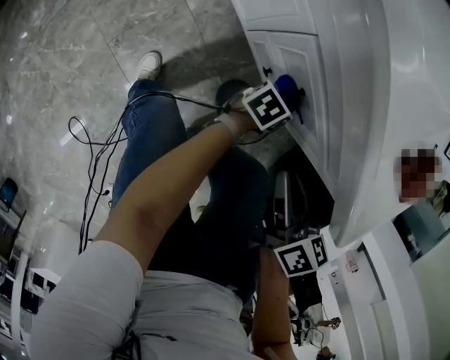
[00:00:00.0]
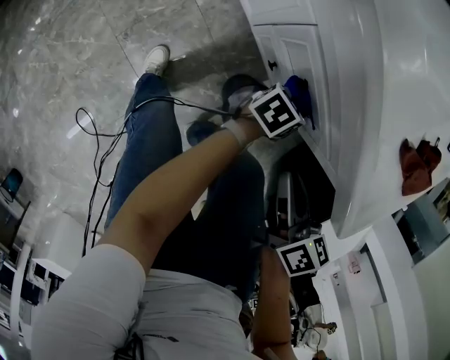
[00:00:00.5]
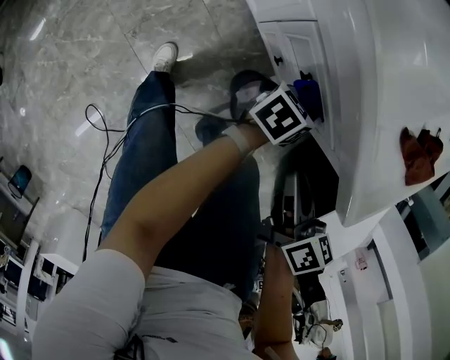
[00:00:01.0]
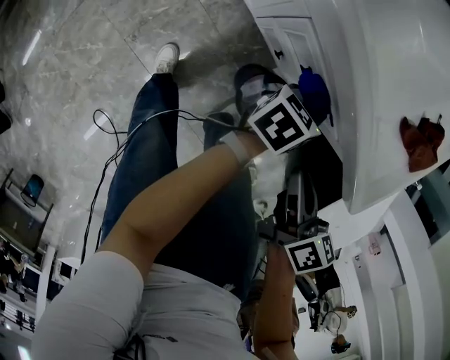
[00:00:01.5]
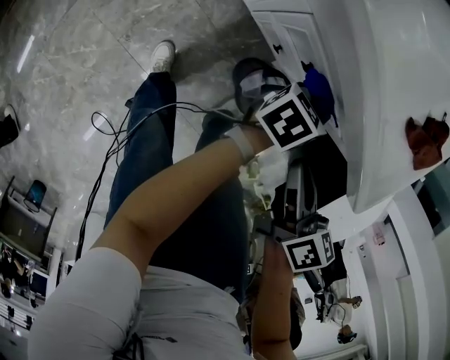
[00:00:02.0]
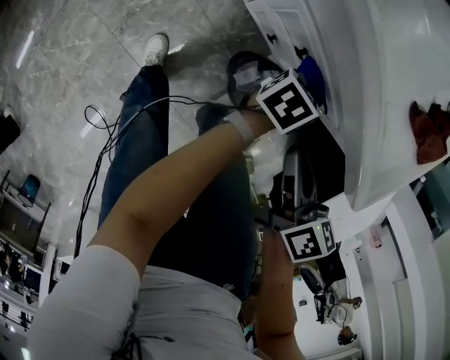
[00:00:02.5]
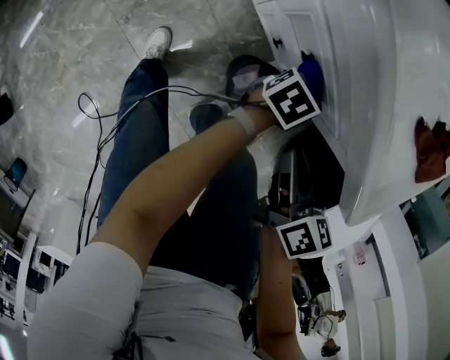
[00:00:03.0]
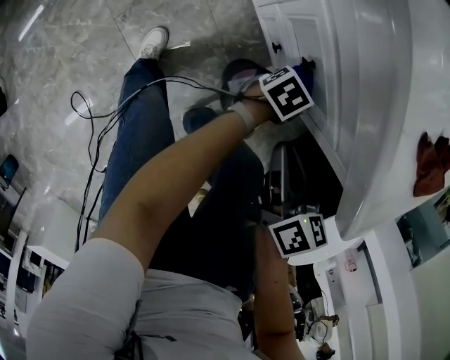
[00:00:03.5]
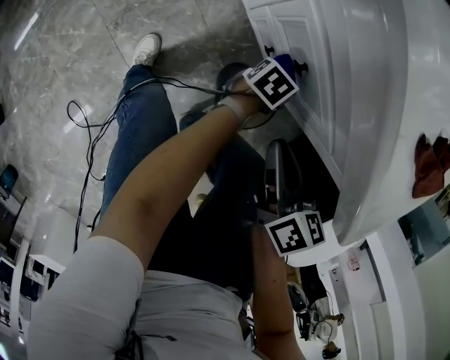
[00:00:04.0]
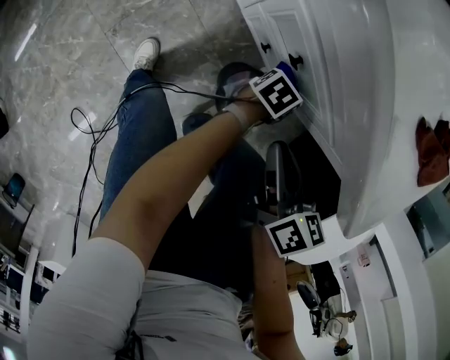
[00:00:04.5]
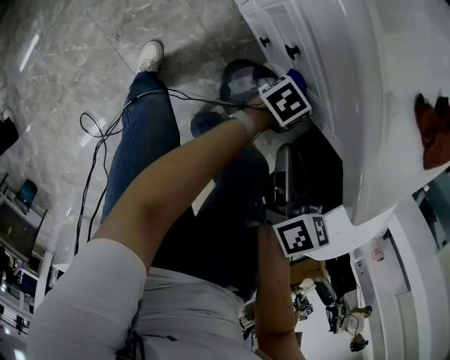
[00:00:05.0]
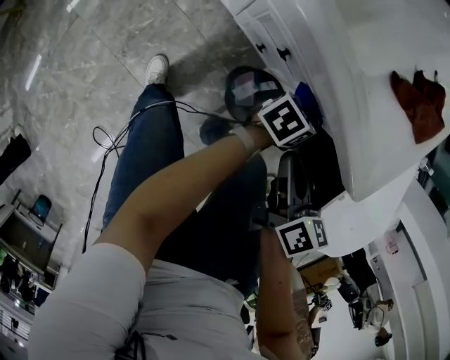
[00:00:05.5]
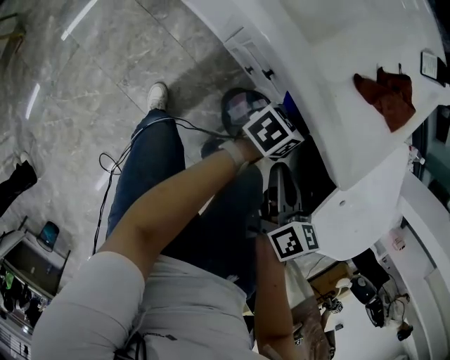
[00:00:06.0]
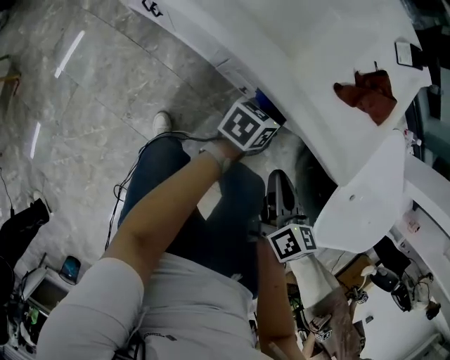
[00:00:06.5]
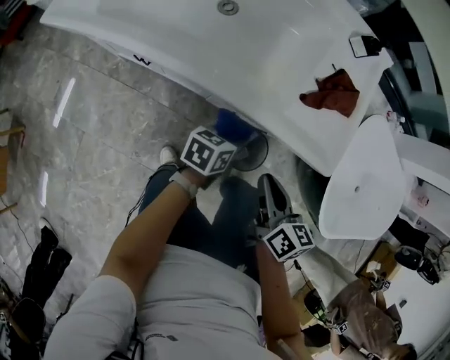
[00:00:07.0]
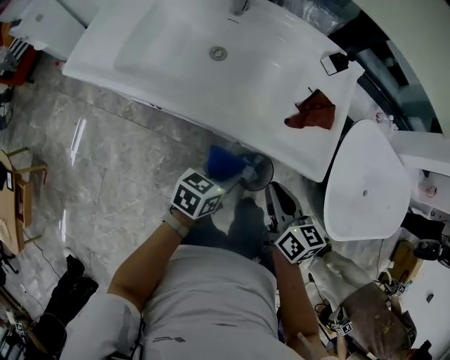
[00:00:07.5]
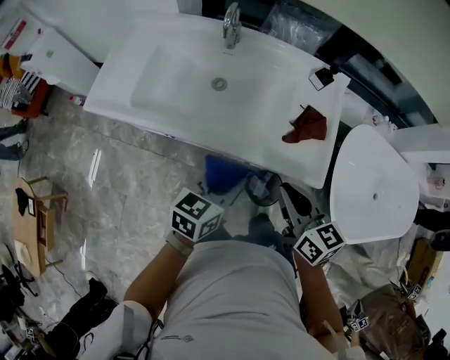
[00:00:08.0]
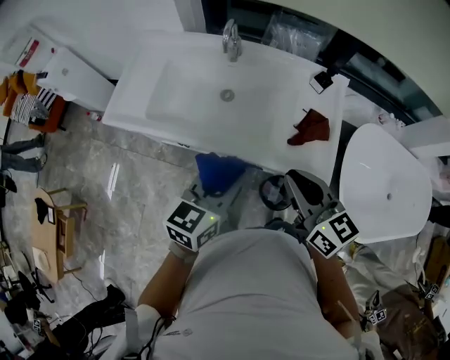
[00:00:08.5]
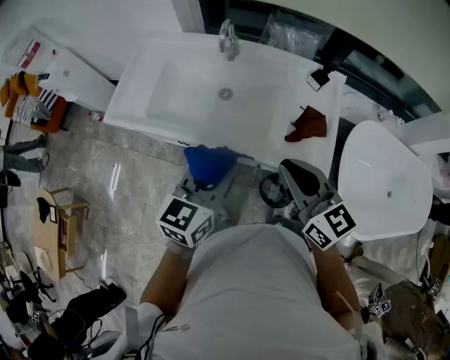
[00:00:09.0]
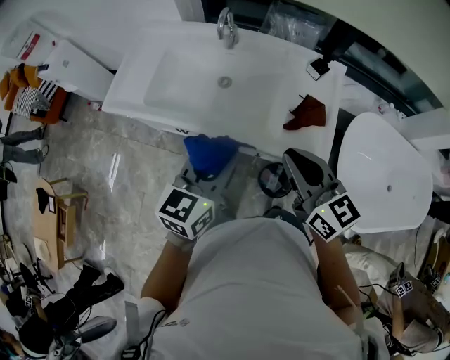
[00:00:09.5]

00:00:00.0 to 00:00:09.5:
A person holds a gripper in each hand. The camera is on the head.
00:00:00.0 to 00:00:02.0: The left gripper heads upward, covering some 15 cm. Meanwhile the right gripper moves upward, approximately 5 cm.
00:00:02.0 to 00:00:04.0: The right gripper travels downward by about 10 cm. Meanwhile the left gripper moves downward, roughly 20 cm, and rotates approximately 20 degrees.
00:00:04.0 to 00:00:05.5: The left gripper goes some 20 cm upward and to the right, and rotates some 20 degrees; the right gripper shifts approximately 10 cm upward and to the right.
00:00:05.5 to 00:00:07.5: Both grippers travel together upward and to the left, some 30 cm.
00:00:07.5 to 00:00:09.5: Both grippers move upward, about 20 cm. The right gripper swivels approximately 30 degrees; the left gripper changes its angle by about 30 degrees.

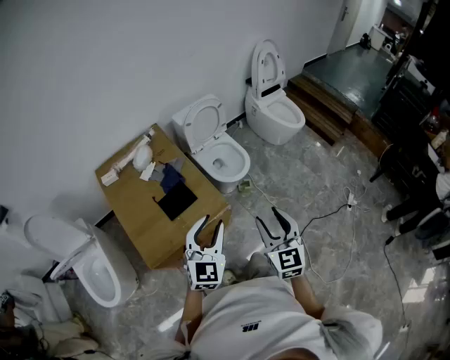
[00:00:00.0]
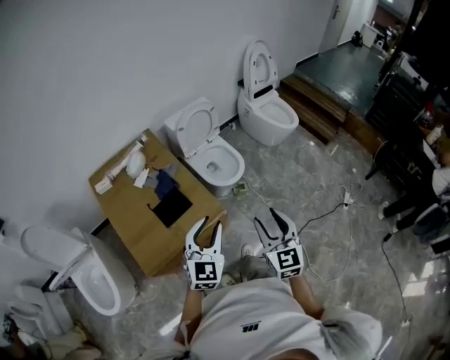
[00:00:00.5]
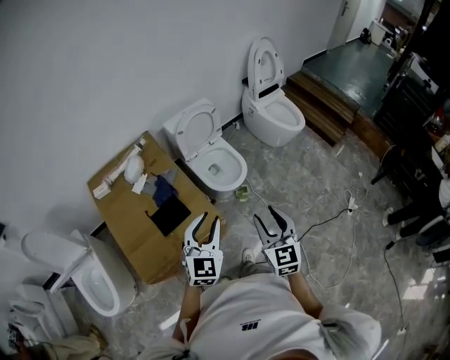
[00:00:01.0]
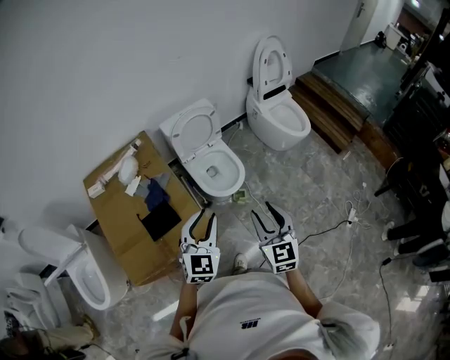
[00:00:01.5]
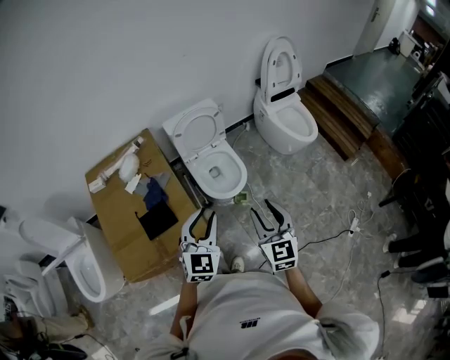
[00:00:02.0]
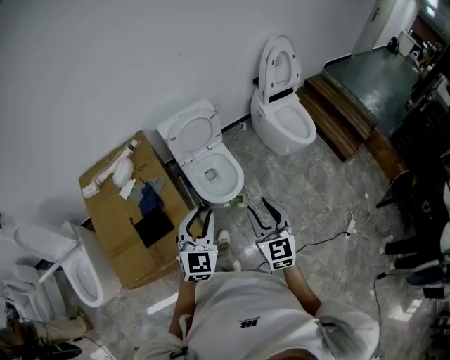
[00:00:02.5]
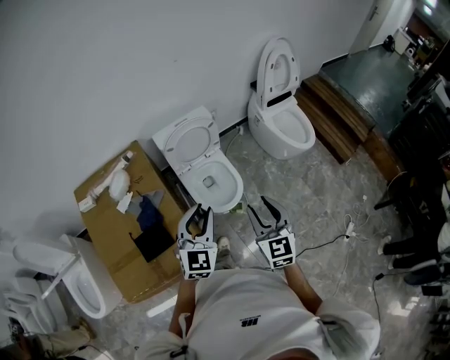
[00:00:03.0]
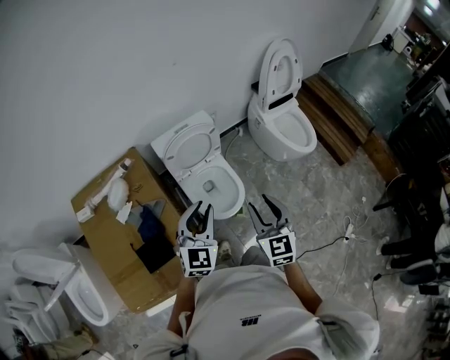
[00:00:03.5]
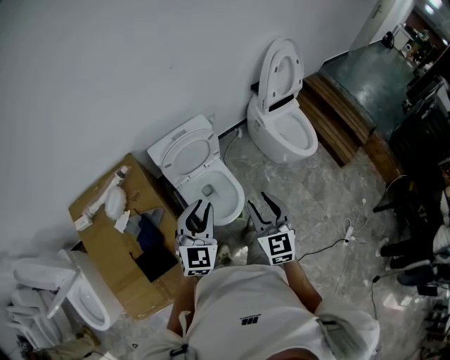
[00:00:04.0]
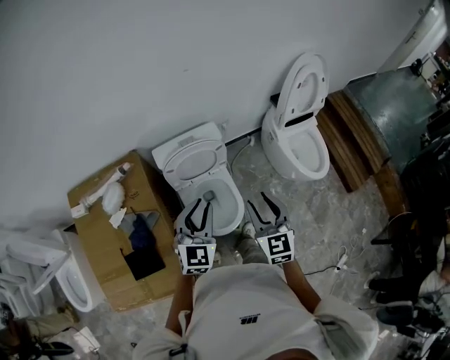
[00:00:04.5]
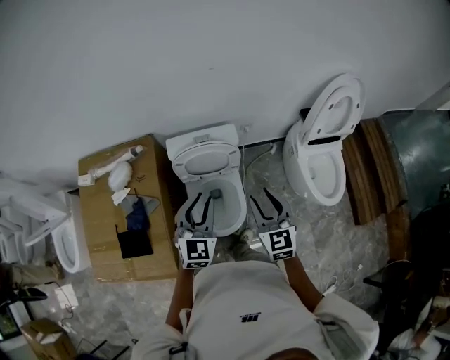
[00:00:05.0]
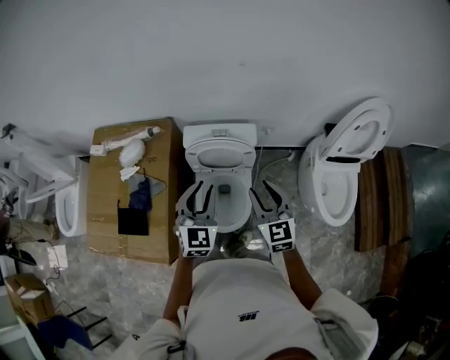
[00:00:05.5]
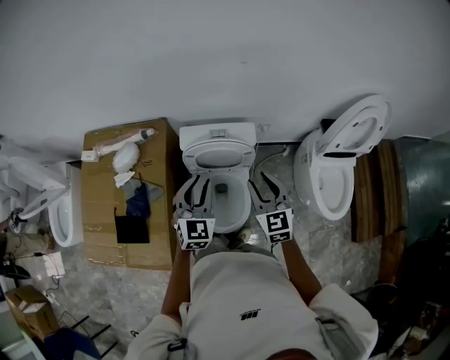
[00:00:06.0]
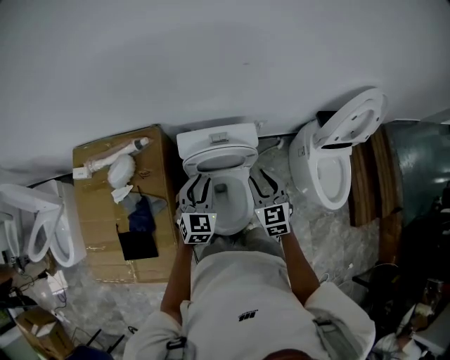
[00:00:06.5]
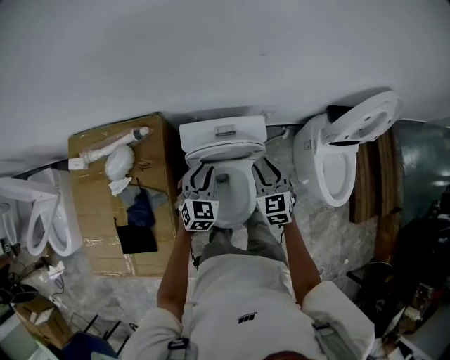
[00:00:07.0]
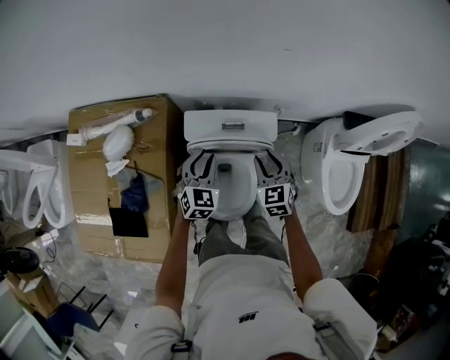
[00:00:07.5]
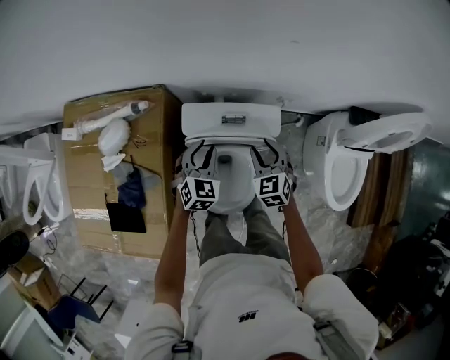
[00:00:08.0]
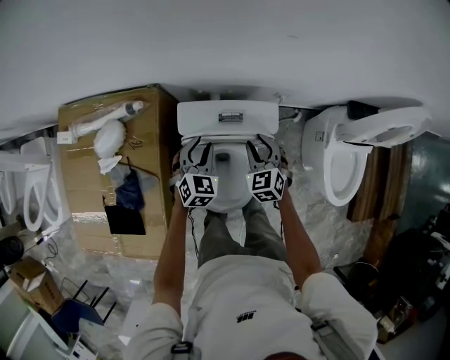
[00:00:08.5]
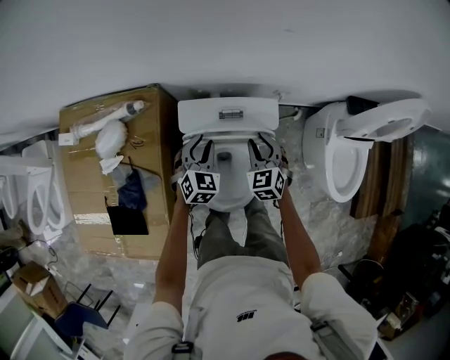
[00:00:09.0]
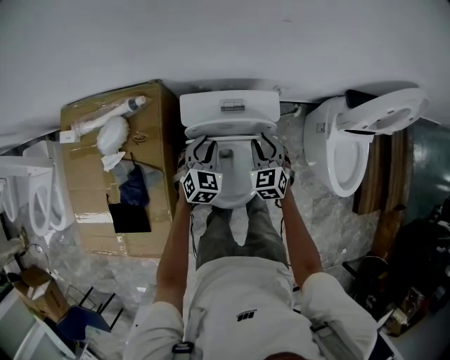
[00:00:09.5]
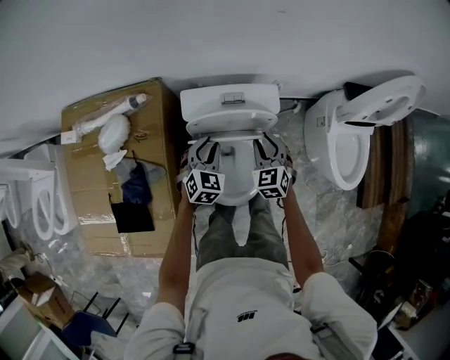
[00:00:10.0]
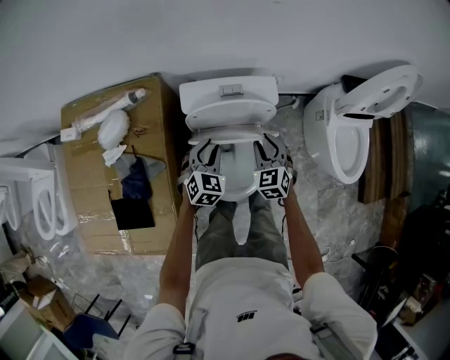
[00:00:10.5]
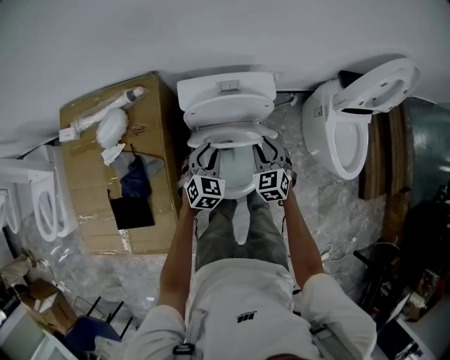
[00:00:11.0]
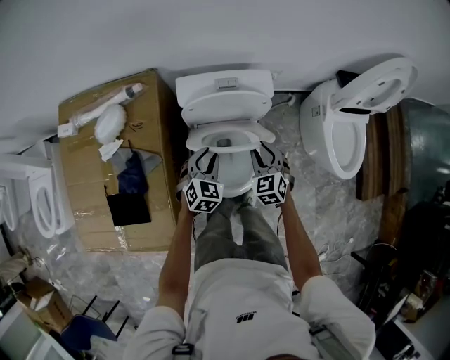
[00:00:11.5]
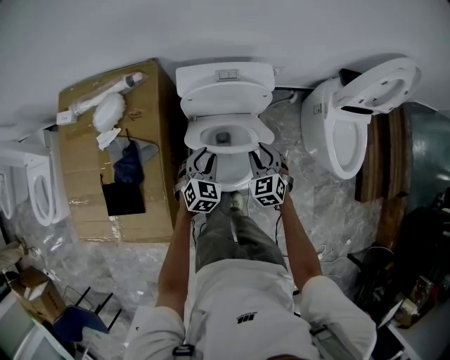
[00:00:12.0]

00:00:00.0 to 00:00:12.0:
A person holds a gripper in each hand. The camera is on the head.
00:00:00.0 to 00:00:02.0: Both grippers move forward and to the right, approximately 25 cm.
00:00:02.0 to 00:00:04.0: The grippers both shift forward by approximately 30 cm.
00:00:04.0 to 00:00:06.0: The left gripper shifts by approximately 20 cm, and swivels approximately 30 degrees. The right gripper changes place by about 25 cm, and turns by approximately 30 degrees.
00:00:06.0 to 00:00:08.0: The two grippers go some 25 cm downward and forward. The right gripper changes its angle by some 20 degrees.
00:00:08.0 to 00:00:10.0: Both grippers move backward, some 5 cm.
00:00:10.0 to 00:00:12.0: The grippers both shift backward by roughly 15 cm.

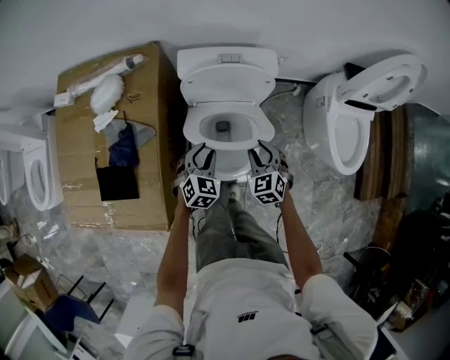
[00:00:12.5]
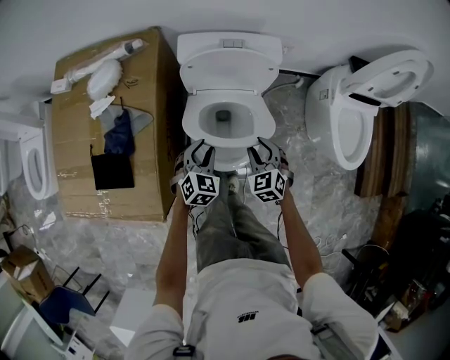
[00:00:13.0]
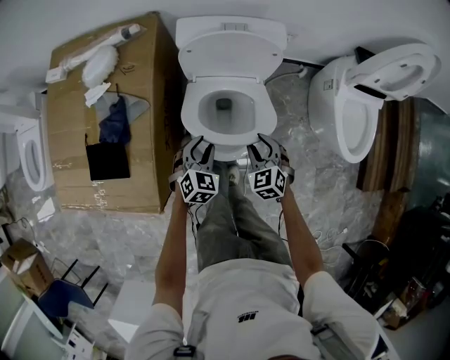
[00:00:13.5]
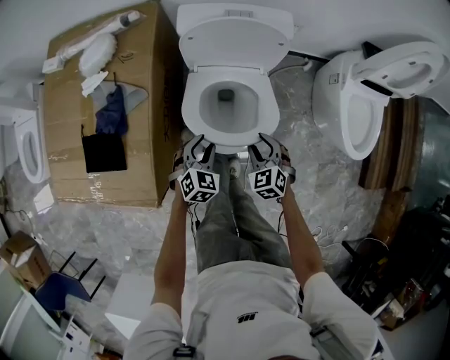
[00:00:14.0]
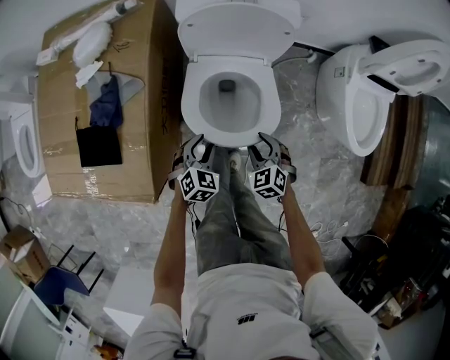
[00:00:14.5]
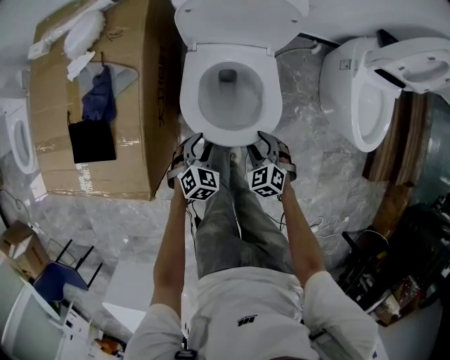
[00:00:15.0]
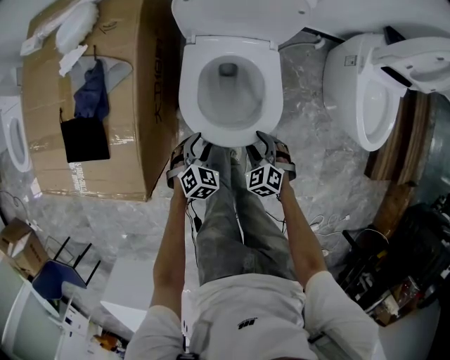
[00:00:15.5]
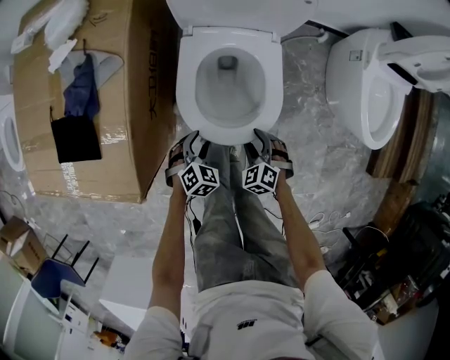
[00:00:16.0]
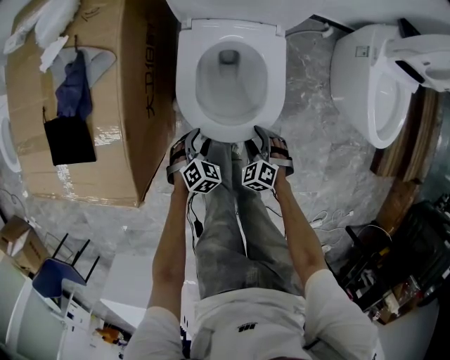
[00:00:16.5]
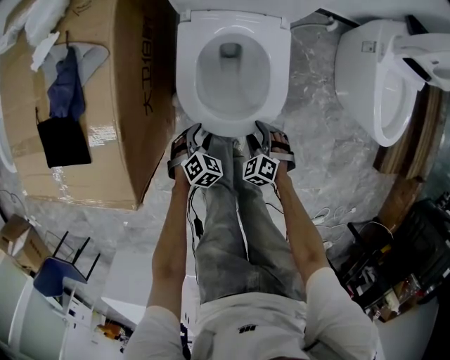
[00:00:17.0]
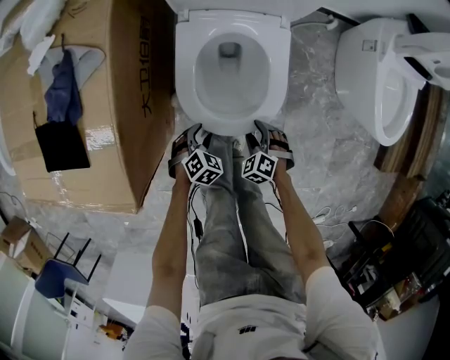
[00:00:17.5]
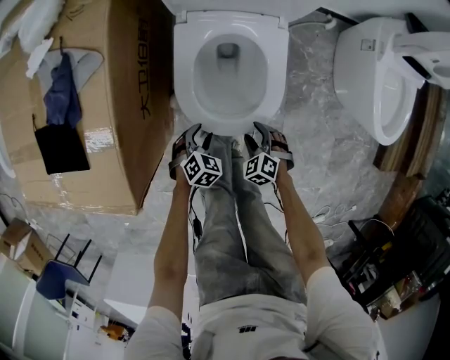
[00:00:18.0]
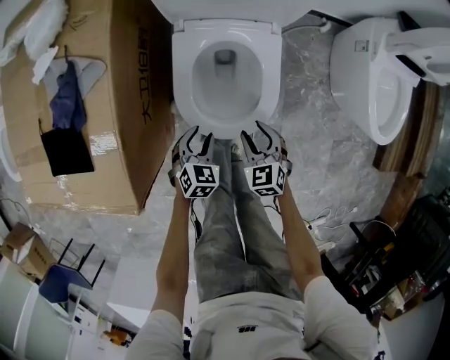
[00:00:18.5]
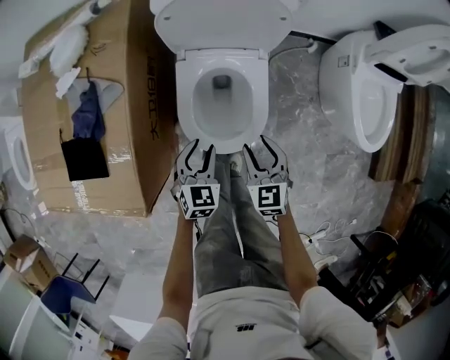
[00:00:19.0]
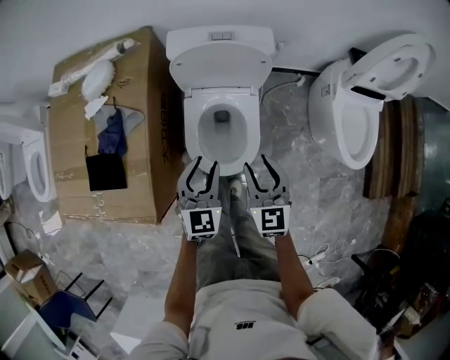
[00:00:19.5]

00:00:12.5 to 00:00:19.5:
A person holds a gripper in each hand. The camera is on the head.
00:00:12.5 to 00:00:14.5: Both grippers travel together downward and backward, approximately 15 cm.
00:00:14.5 to 00:00:16.0: Both grippers move downward and backward, some 15 cm.
00:00:16.0 to 00:00:17.5: Both grippers move downward, roughly 10 cm.
00:00:17.5 to 00:00:19.5: The grippers both shift upward by approximately 40 cm. The right gripper tips its fingers upward by about 40 degrees; the left gripper tilts its fingers about 40 degrees upward.
